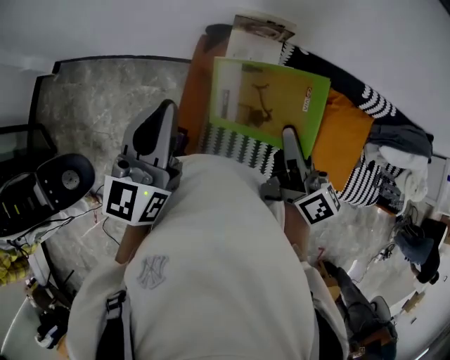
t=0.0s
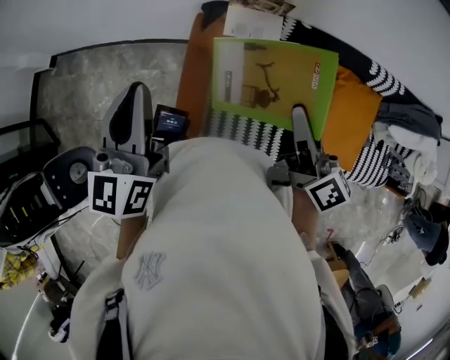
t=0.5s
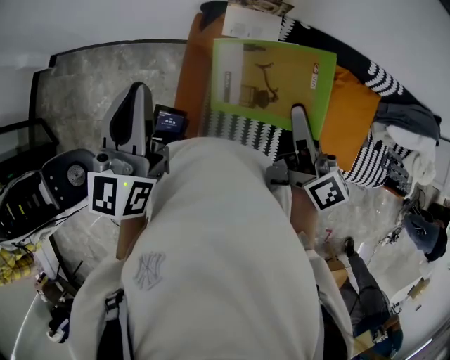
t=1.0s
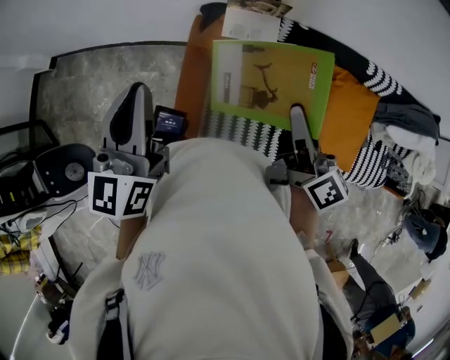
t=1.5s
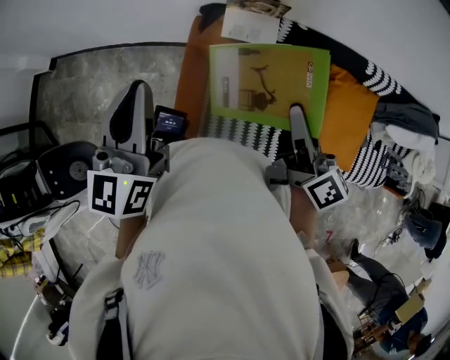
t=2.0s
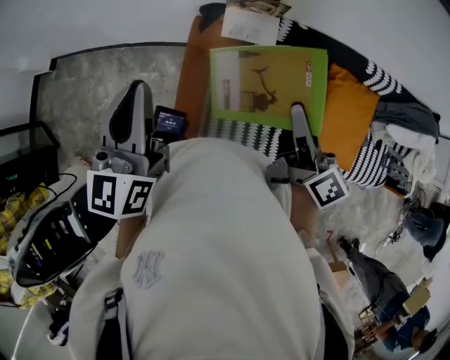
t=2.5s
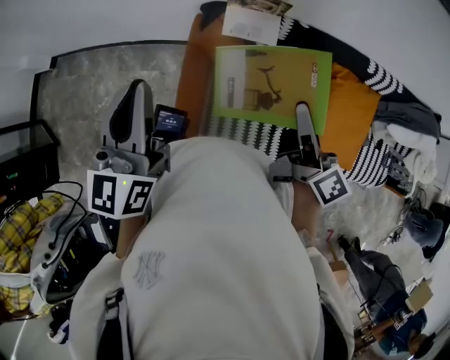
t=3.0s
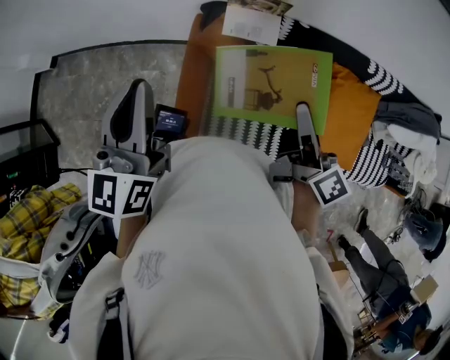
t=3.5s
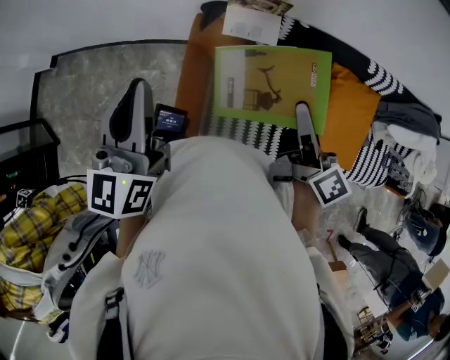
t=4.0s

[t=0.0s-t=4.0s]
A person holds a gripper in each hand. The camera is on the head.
t=0.0s to t=4.0s: The grippers stay close to where they were, moving slightly.

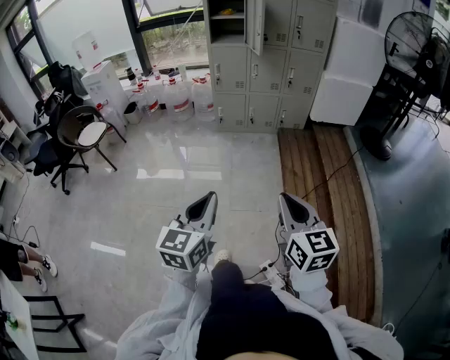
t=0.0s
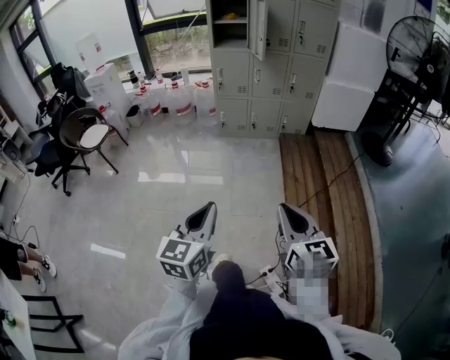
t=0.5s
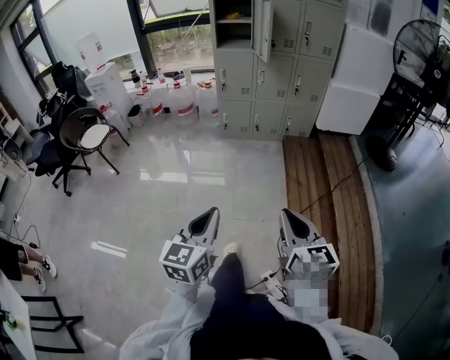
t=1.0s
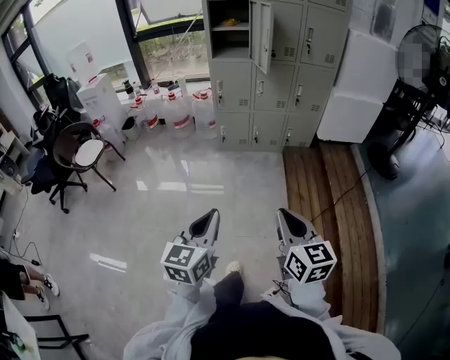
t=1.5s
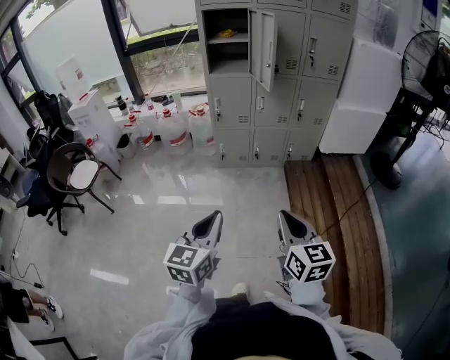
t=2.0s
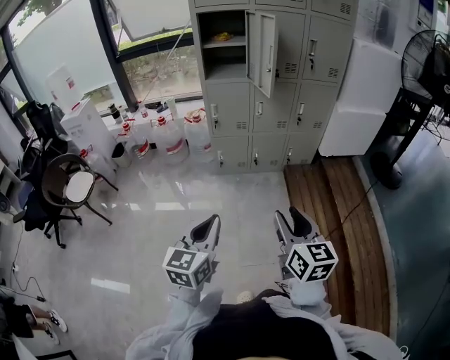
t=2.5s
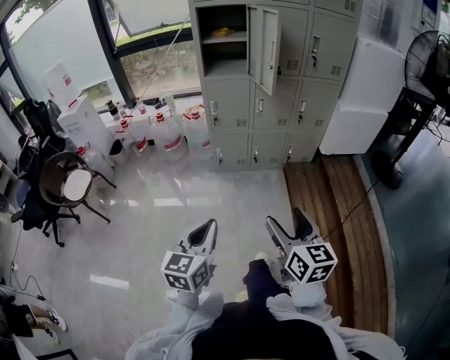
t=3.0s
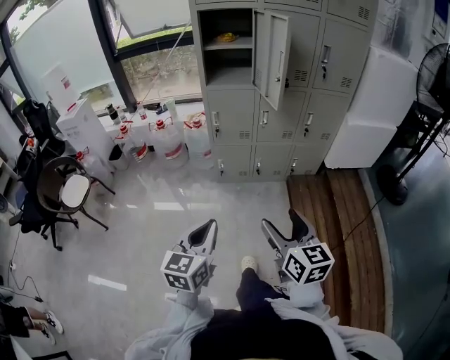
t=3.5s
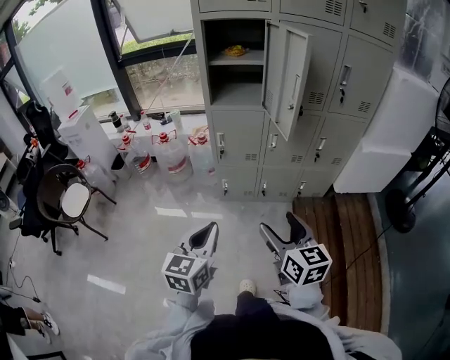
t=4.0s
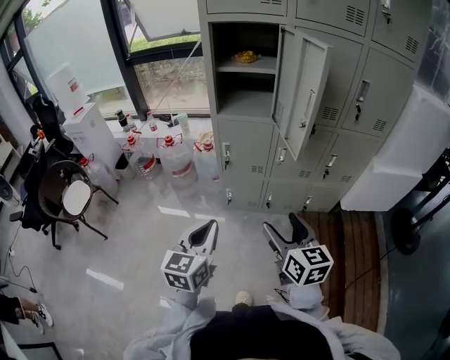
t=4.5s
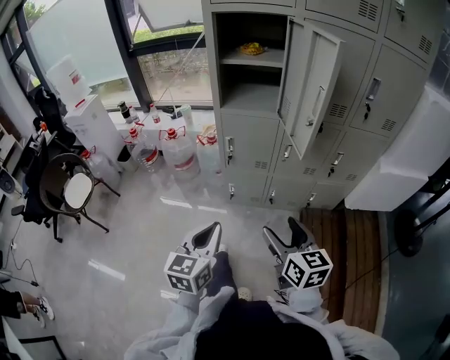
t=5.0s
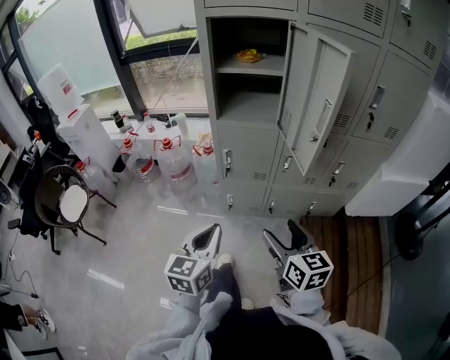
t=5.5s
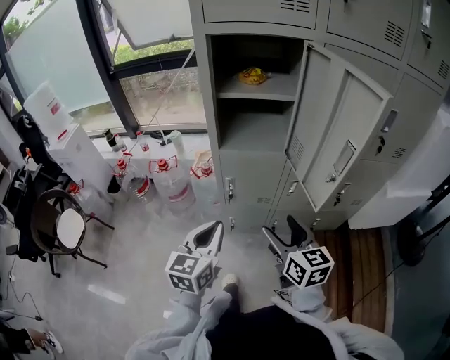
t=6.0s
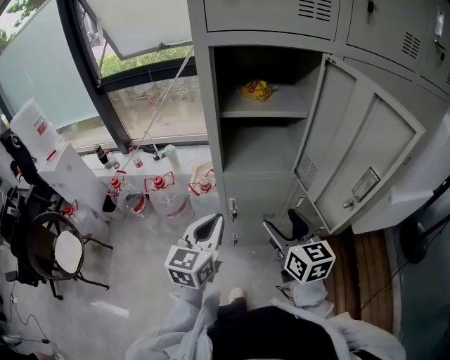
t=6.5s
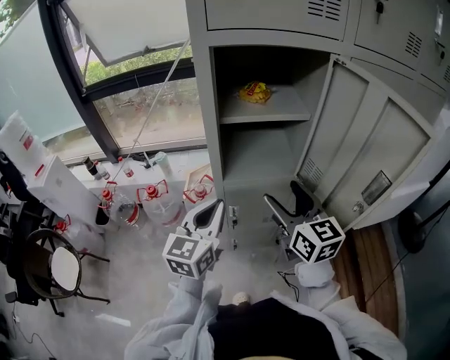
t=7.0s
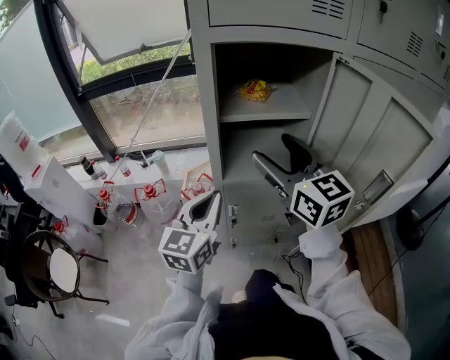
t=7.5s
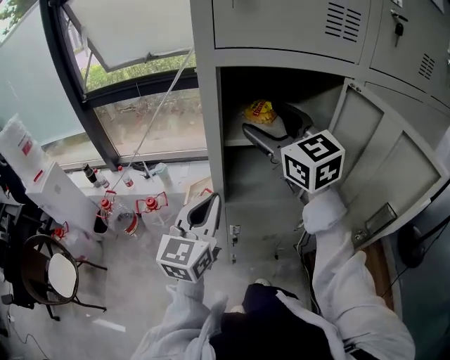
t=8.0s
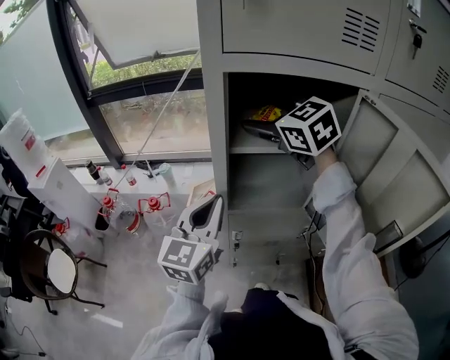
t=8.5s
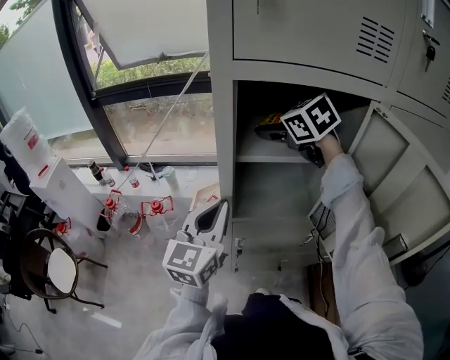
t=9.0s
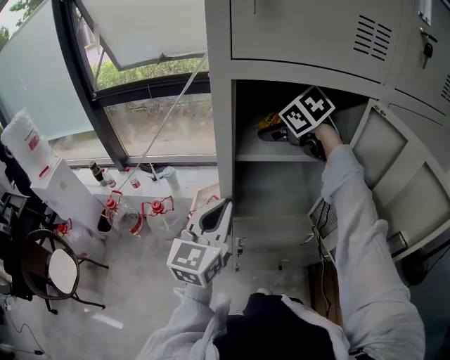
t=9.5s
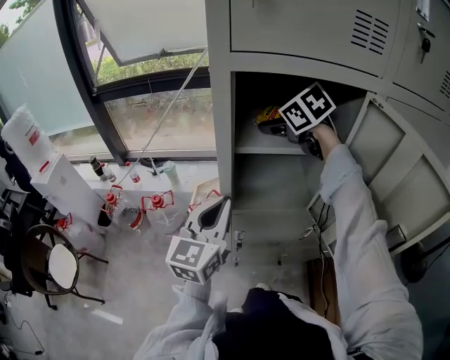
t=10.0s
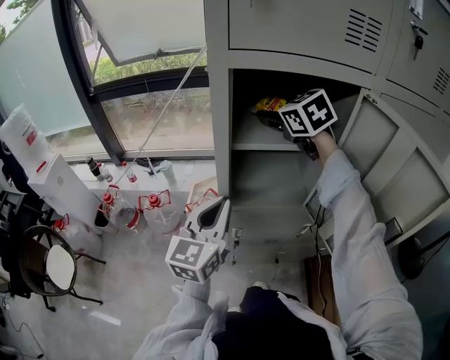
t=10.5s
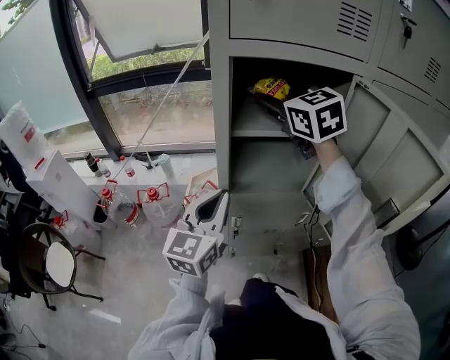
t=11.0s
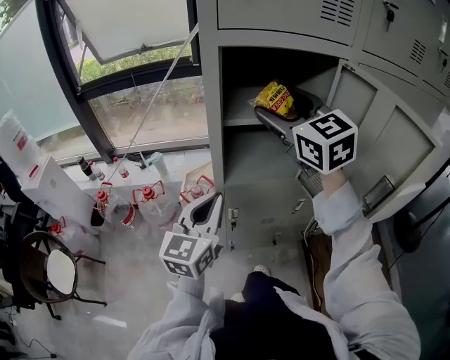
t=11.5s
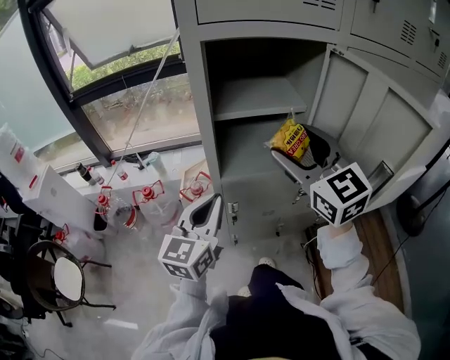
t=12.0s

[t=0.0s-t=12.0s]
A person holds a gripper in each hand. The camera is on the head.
t=0.0s to t=2.0s: Both grippers move forward, roughly 30 cm.
t=2.0s to t=4.0s: The two grippers go approximately 30 cm forward. The right gripper opens.
t=4.0s to t=6.0s: The grippers both shift forward by roughly 30 cm.
t=6.0s to t=8.0s: The right gripper heads forward and upward, covering about 40 cm, and swivels roughly 30 degrees; the left gripper goes some 25 cm forward and upward.
t=8.0s to t=10.0s: The right gripper shifts roughly 15 cm forward and downward, and tilts its fingers about 40 degrees downward.
t=10.0s to t=12.0s: The left gripper moves backward, roughly 5 cm. The right gripper goes some 25 cm backward, and tips its fingers upward by roughly 40 degrees.

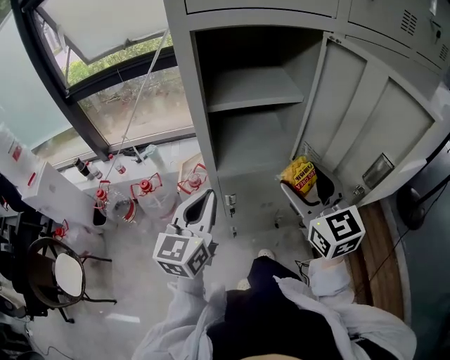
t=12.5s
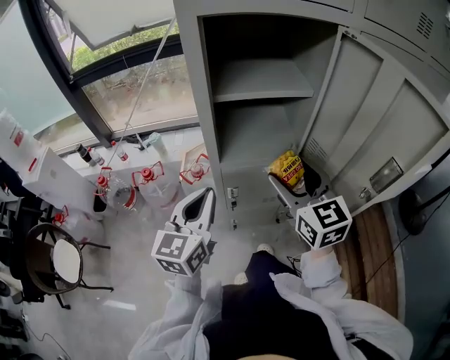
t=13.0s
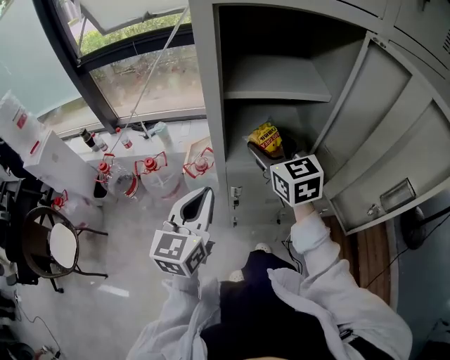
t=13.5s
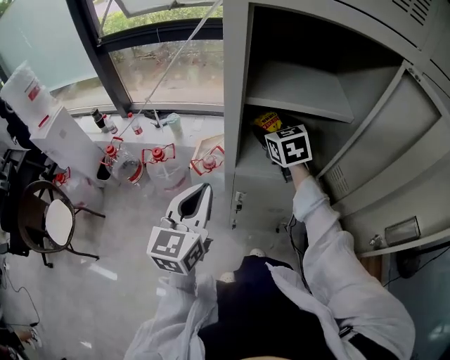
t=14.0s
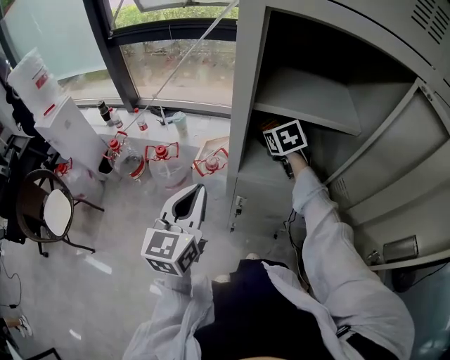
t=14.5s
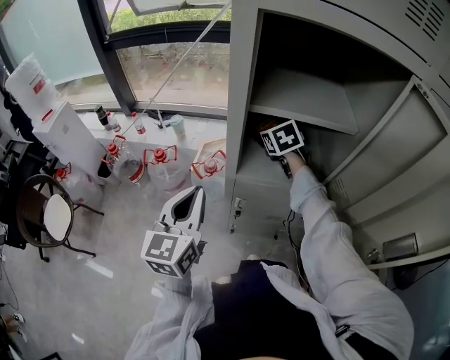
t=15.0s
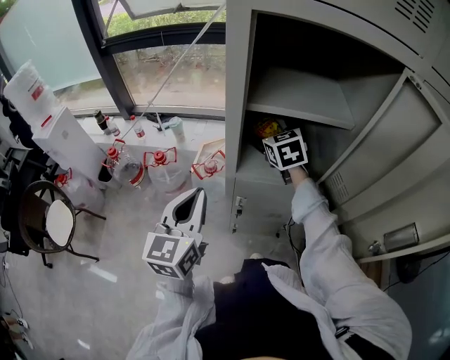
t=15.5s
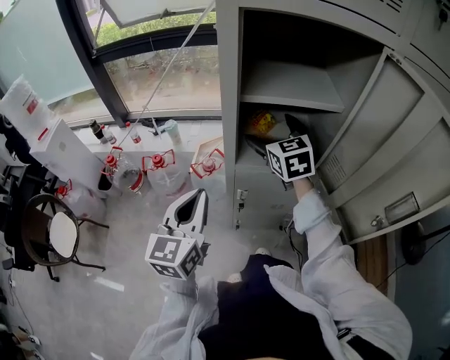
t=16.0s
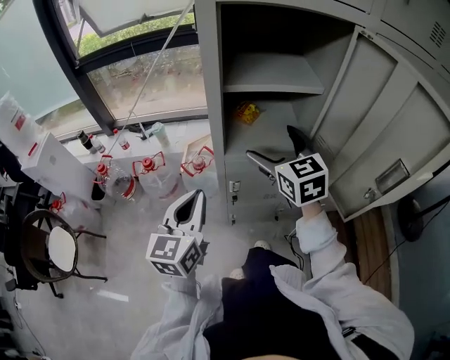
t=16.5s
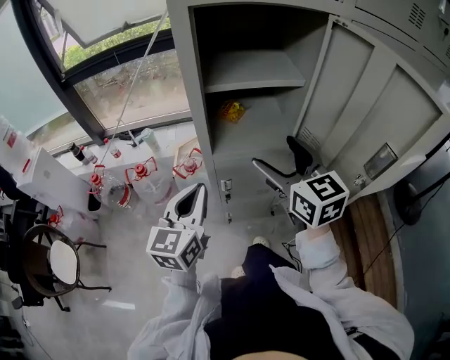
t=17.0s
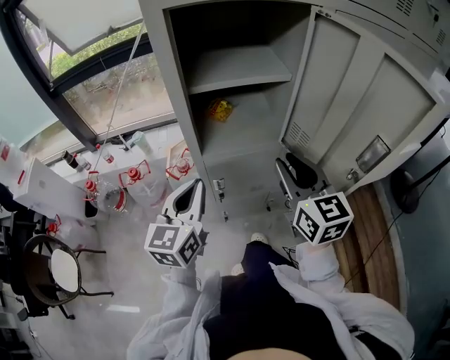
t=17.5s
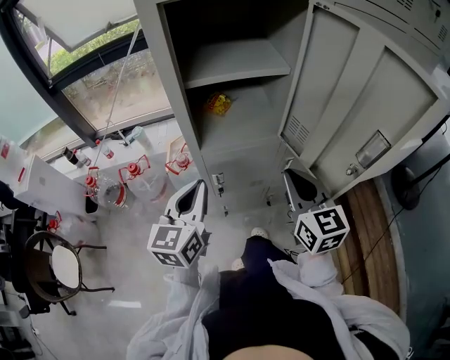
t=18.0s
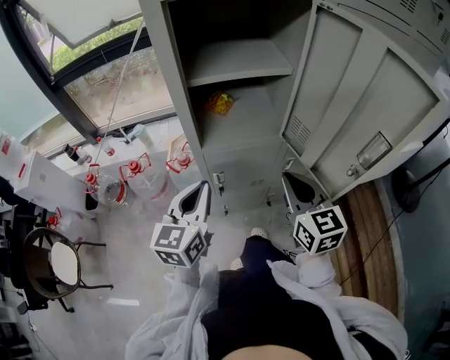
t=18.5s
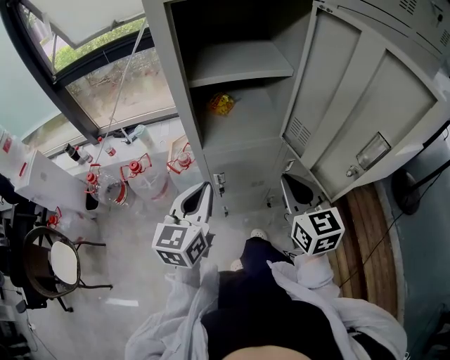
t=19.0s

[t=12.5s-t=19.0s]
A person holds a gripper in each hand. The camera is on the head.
t=12.5s to t=14.5s: The left gripper shifts roughly 5 cm to the left, and changes its angle by roughly 20 degrees, while the right gripper moves forward and downward, about 35 cm, and tips its fingers downward by roughly 30 degrees.
t=14.5s to t=17.0s: The left gripper ends up roughly 5 cm from where it was, while the right gripper moves backward and upward, approximately 30 cm, and turns by roughly 30 degrees.
t=17.0s to t=19.0s: The right gripper moves downward, to the right and backward, some 10 cm, and closes.

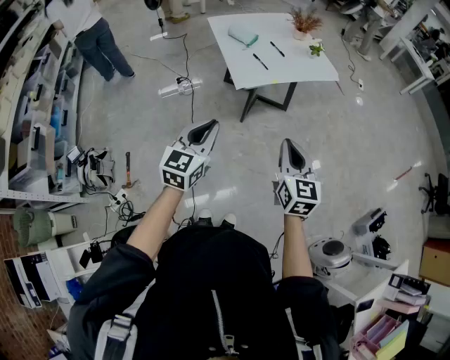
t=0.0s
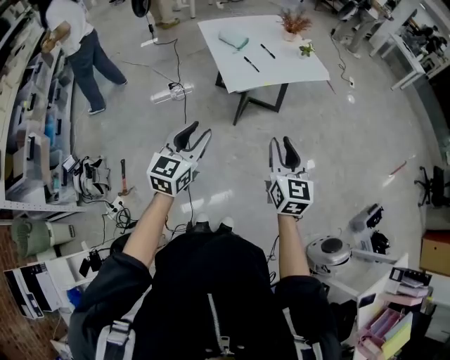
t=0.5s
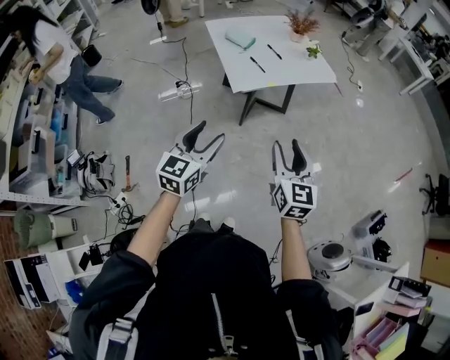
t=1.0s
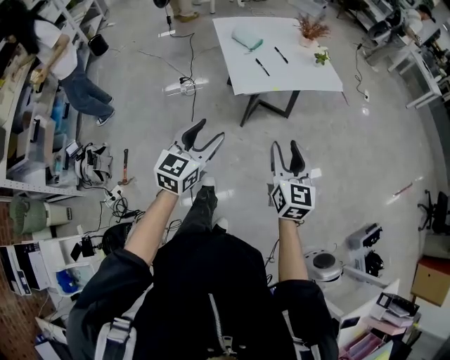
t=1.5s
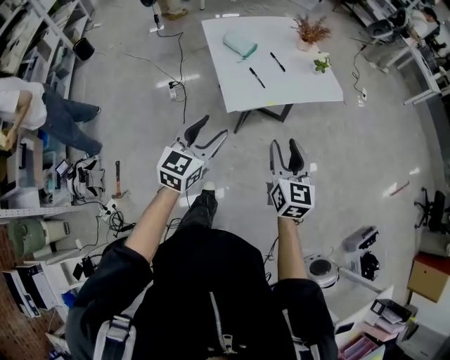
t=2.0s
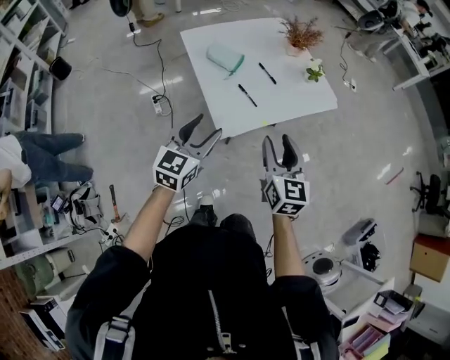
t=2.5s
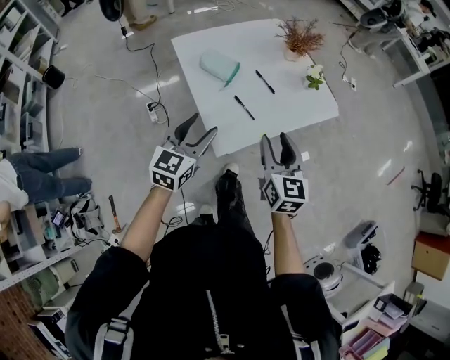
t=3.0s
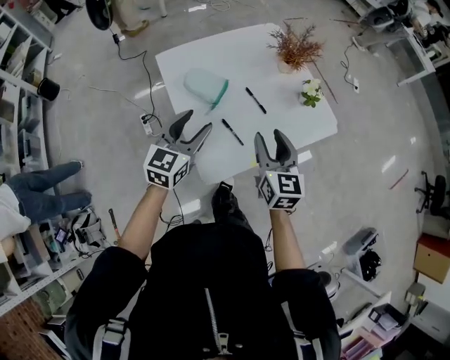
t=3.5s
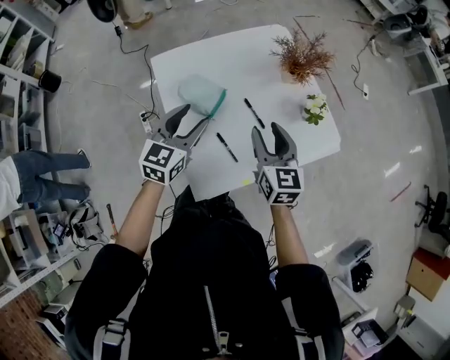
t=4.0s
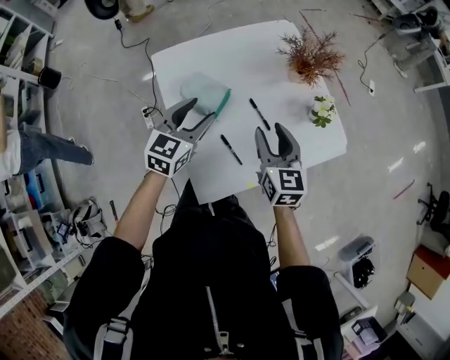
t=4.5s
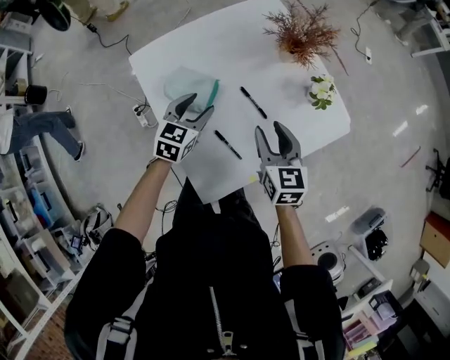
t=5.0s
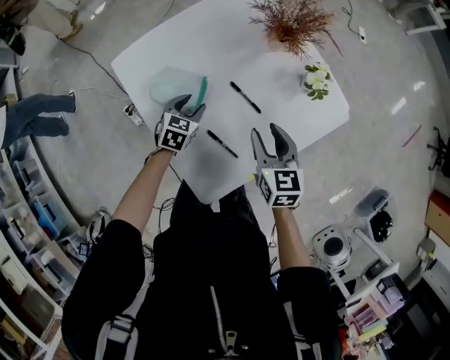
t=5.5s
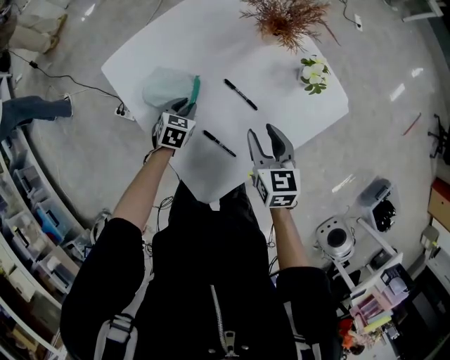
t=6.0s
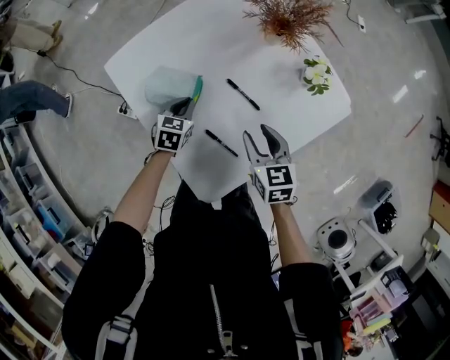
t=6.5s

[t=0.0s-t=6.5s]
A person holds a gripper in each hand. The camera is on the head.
t=0.0s to t=2.0s: The grippers both shift forward by approximately 15 cm. The right gripper opens its fingers. The left gripper opens its fingers.
t=2.0s to t=4.5s: The two grippers travel together, forward, roughly 50 cm.
t=4.5s to t=6.5s: The right gripper moves downward, about 10 cm; the left gripper travels downward by some 20 cm, swivels roughly 30 degrees, and closes its fingers.
